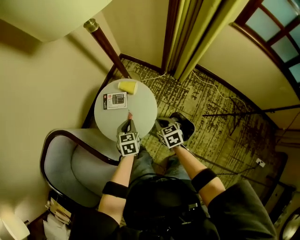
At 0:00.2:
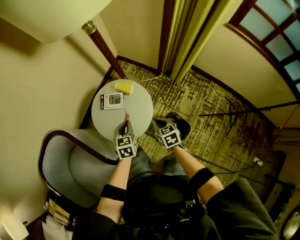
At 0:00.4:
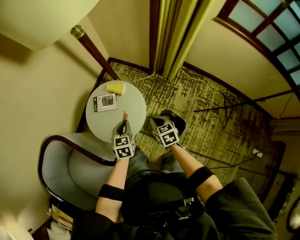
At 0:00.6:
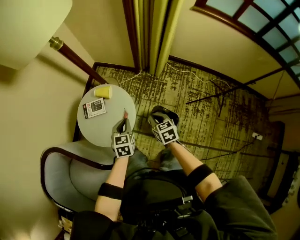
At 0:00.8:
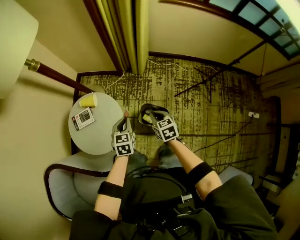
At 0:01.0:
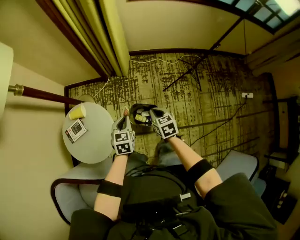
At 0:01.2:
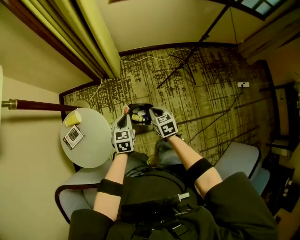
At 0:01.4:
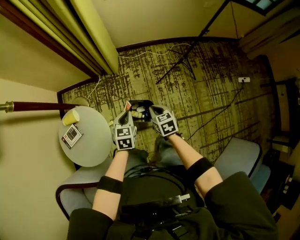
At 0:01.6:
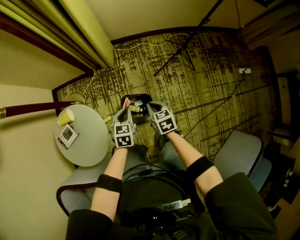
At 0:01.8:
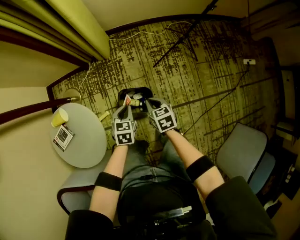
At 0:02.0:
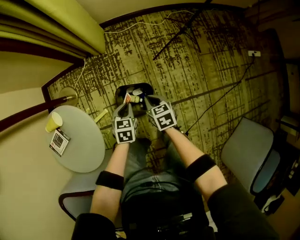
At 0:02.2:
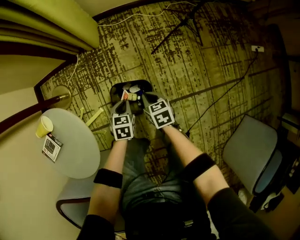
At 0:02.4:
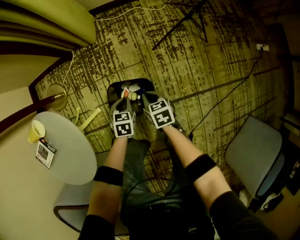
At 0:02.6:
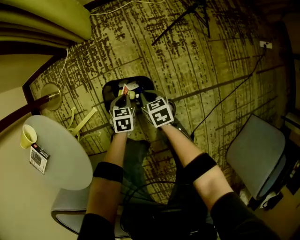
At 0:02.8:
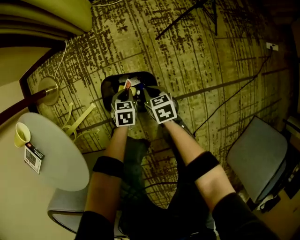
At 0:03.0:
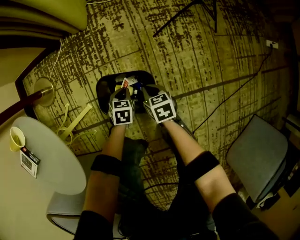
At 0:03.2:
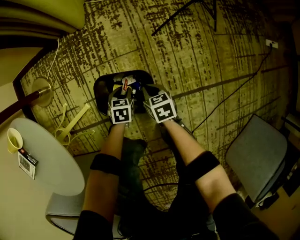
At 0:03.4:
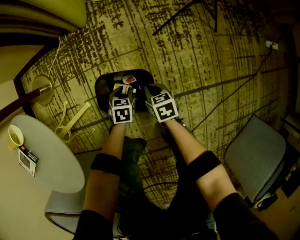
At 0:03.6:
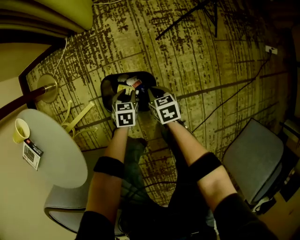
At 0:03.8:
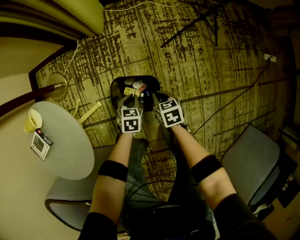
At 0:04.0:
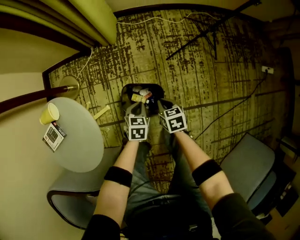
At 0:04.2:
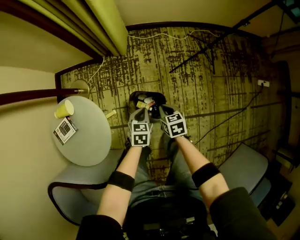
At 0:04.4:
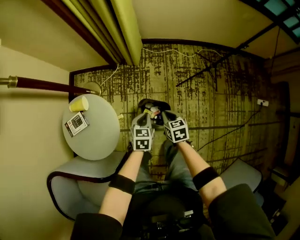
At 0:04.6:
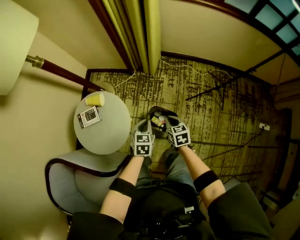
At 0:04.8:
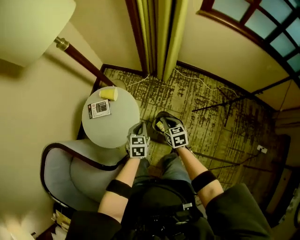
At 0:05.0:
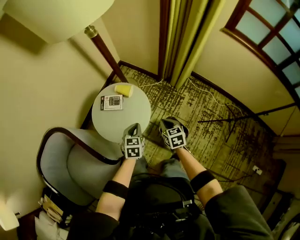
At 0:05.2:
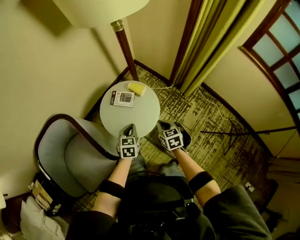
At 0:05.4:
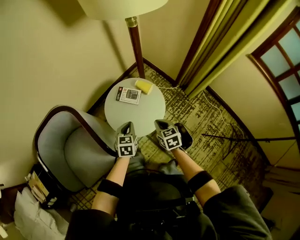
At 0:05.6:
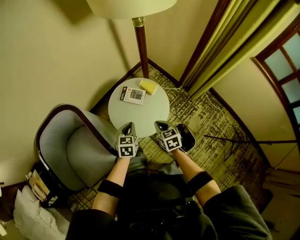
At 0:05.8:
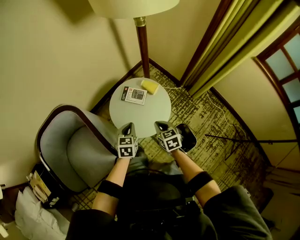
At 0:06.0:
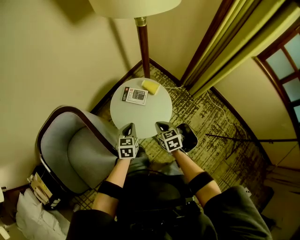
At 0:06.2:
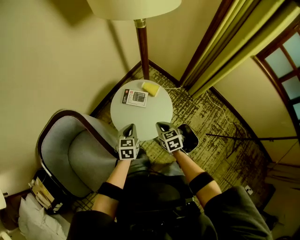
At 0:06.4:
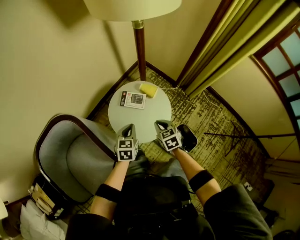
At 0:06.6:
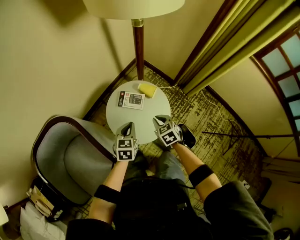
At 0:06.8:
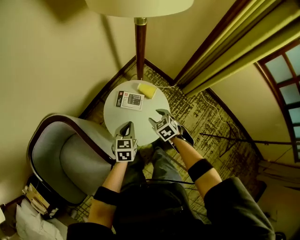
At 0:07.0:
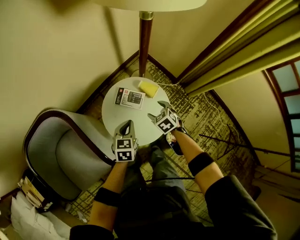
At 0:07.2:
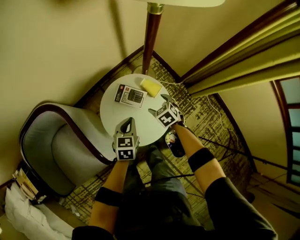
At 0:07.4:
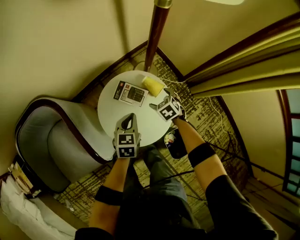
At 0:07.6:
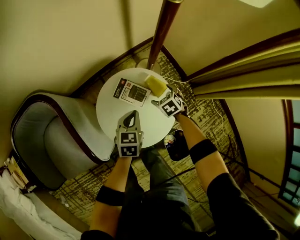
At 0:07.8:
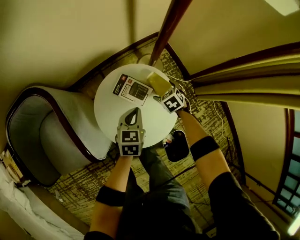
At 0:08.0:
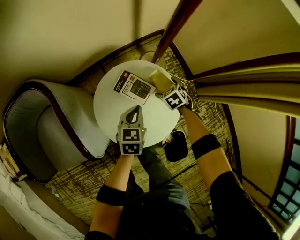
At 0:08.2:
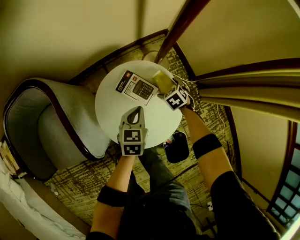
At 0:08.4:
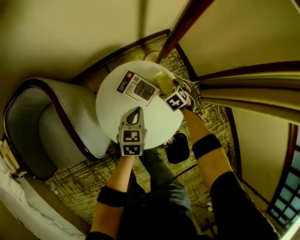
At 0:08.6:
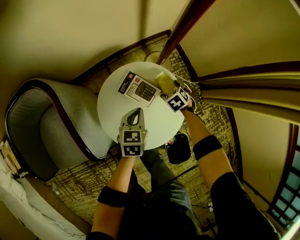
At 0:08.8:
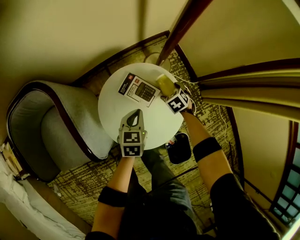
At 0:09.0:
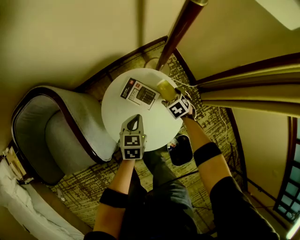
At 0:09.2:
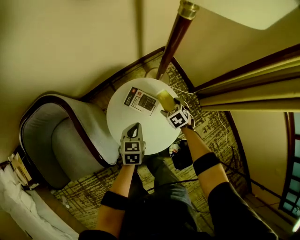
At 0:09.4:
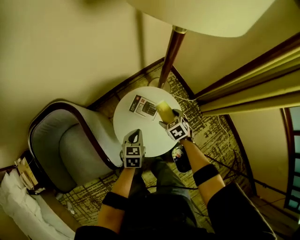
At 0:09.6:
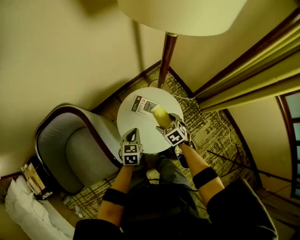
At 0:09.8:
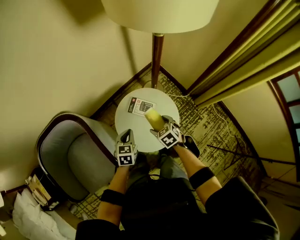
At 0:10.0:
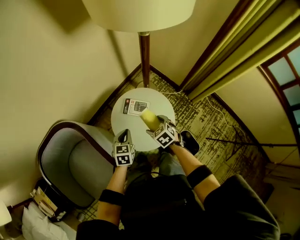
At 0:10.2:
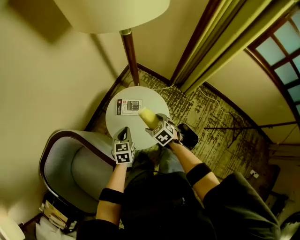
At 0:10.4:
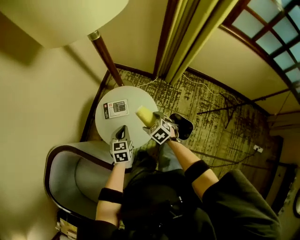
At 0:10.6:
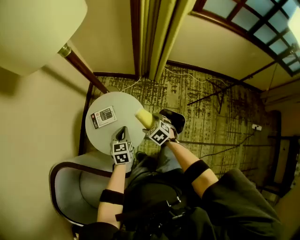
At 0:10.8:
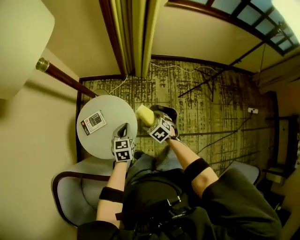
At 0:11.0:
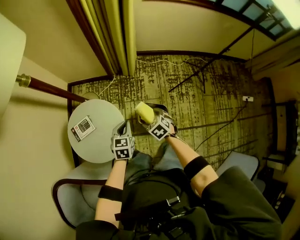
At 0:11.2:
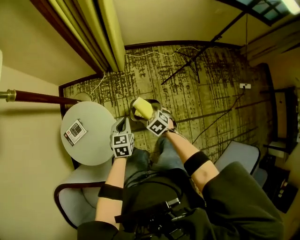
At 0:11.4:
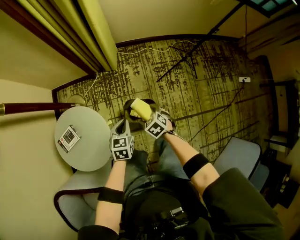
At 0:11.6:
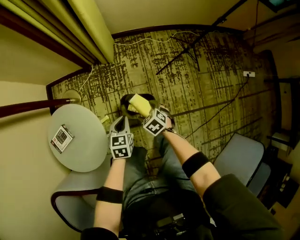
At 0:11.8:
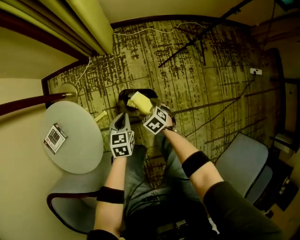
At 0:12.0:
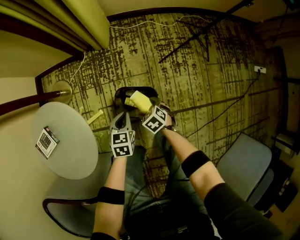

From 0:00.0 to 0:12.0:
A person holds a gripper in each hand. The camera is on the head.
From 0:00.0 to 0:01.6: The left gripper moves about 35 cm, and swivels about 50 degrees. Meanwhile the right gripper ends up about 35 cm from where it was, and changes its angle by some 40 degrees.
From 0:01.6 to 0:03.0: Both grippers travel together downward, roughly 50 cm.
From 0:03.0 to 0:04.4: Both grippers travel together upward, roughly 40 cm. The left gripper opens, then closes again.
From 0:04.4 to 0:06.0: The right gripper moves about 40 cm, and changes its angle by some 50 degrees. The left gripper changes place by roughly 50 cm, and changes its angle by about 50 degrees.
From 0:06.0 to 0:07.6: The right gripper travels forward and downward by some 35 cm, turns by about 40 degrees, and opens up, while the left gripper is displaced forward and downward by about 20 cm.
From 0:09.0 to 0:10.4: The right gripper travels upward and backward by approximately 30 cm, and turns by approximately 30 degrees. Meanwhile the left gripper travels upward and backward by roughly 15 cm, and rotates some 30 degrees.
From 0:10.4 to 0:12.0: The right gripper shifts by some 50 cm, and turns by approximately 30 degrees, while the left gripper shifts by some 50 cm, and swivels approximately 30 degrees.

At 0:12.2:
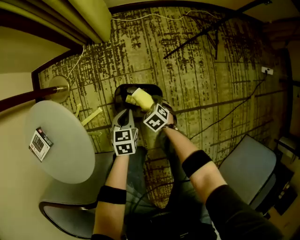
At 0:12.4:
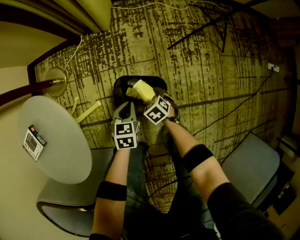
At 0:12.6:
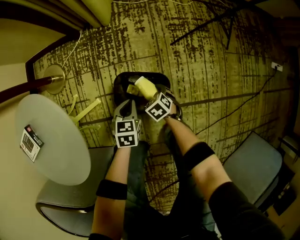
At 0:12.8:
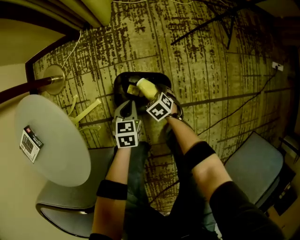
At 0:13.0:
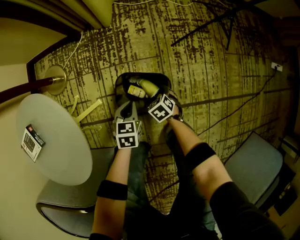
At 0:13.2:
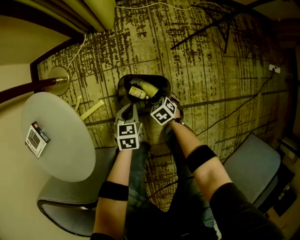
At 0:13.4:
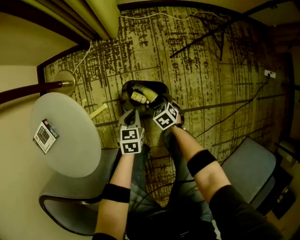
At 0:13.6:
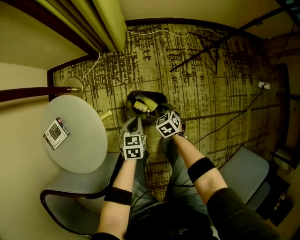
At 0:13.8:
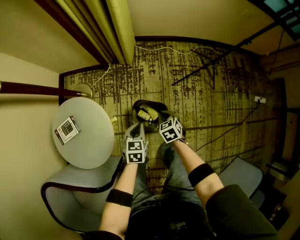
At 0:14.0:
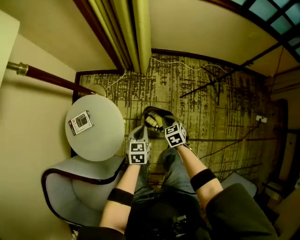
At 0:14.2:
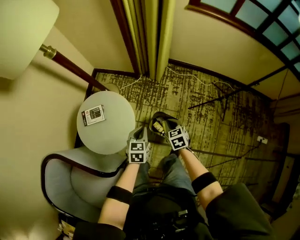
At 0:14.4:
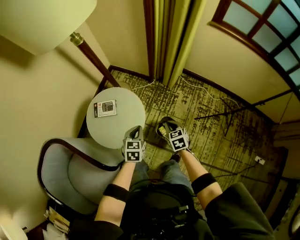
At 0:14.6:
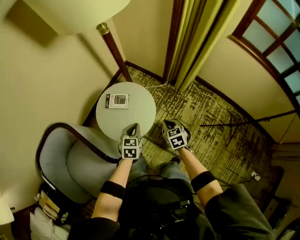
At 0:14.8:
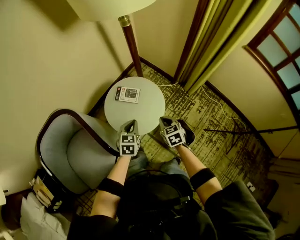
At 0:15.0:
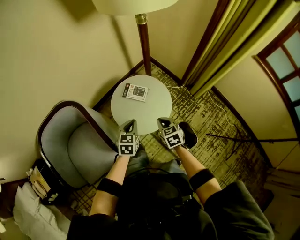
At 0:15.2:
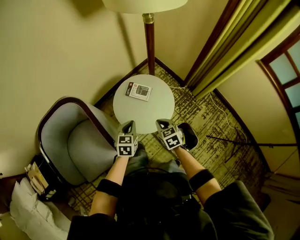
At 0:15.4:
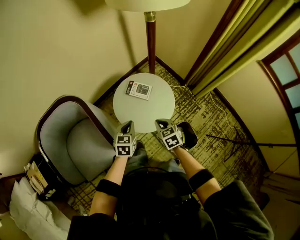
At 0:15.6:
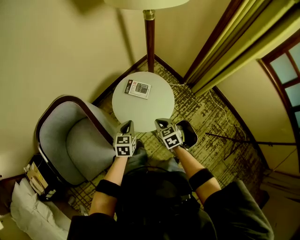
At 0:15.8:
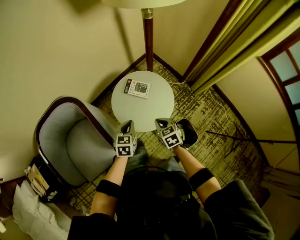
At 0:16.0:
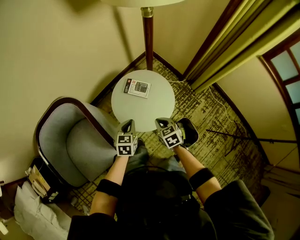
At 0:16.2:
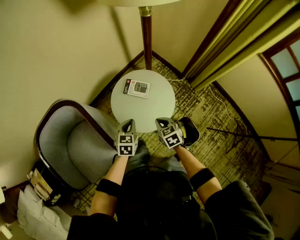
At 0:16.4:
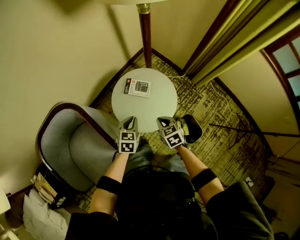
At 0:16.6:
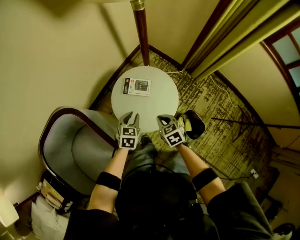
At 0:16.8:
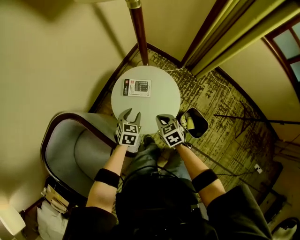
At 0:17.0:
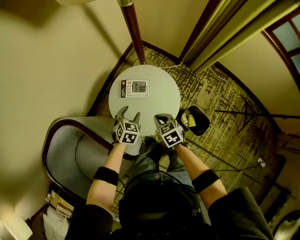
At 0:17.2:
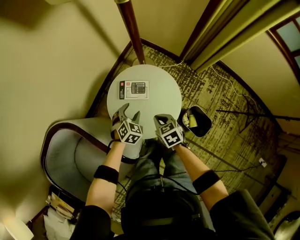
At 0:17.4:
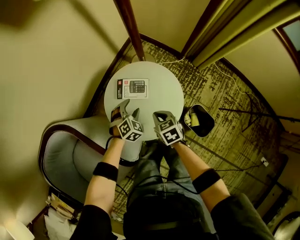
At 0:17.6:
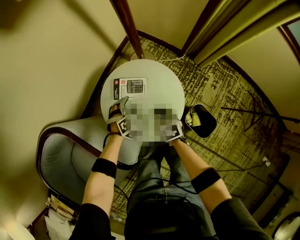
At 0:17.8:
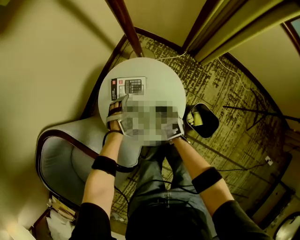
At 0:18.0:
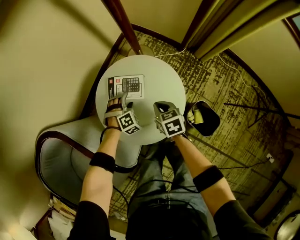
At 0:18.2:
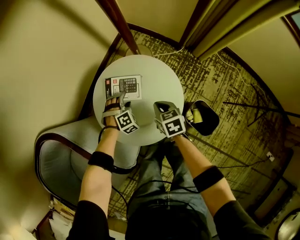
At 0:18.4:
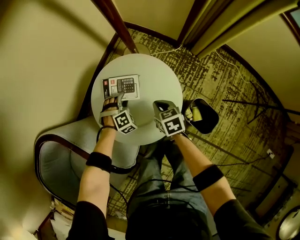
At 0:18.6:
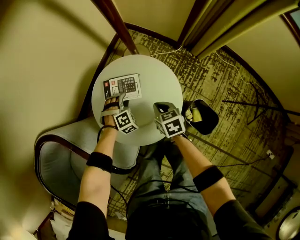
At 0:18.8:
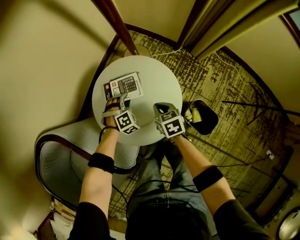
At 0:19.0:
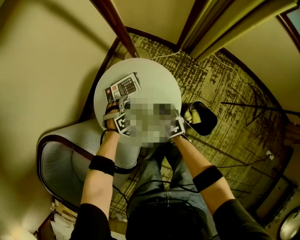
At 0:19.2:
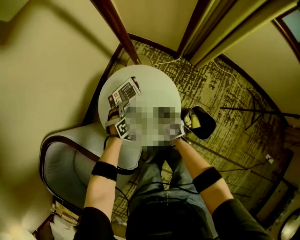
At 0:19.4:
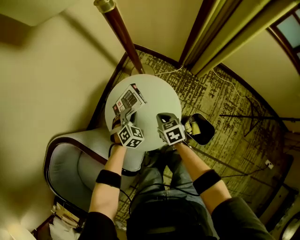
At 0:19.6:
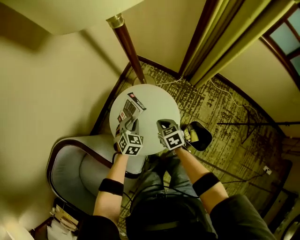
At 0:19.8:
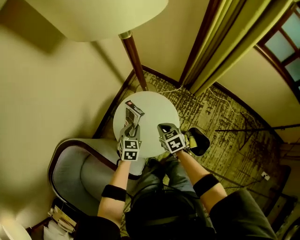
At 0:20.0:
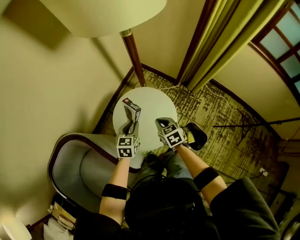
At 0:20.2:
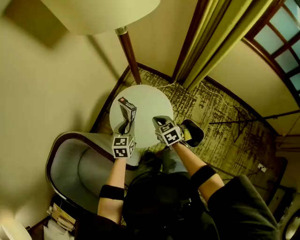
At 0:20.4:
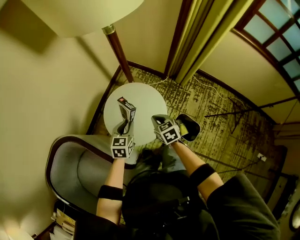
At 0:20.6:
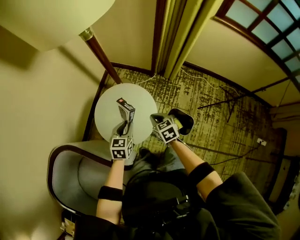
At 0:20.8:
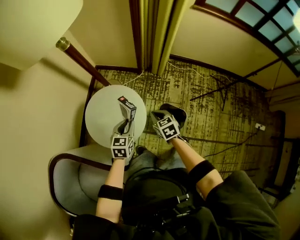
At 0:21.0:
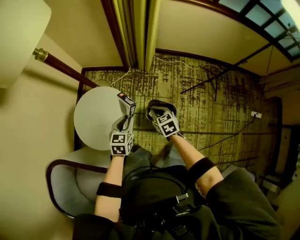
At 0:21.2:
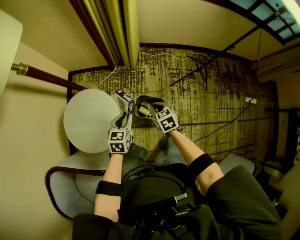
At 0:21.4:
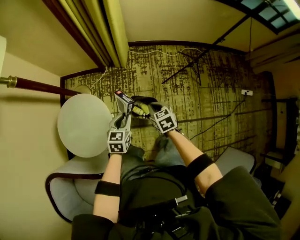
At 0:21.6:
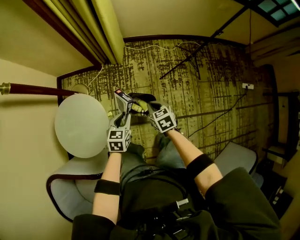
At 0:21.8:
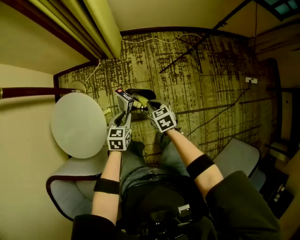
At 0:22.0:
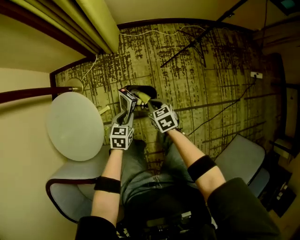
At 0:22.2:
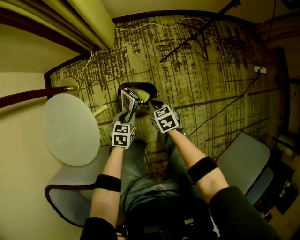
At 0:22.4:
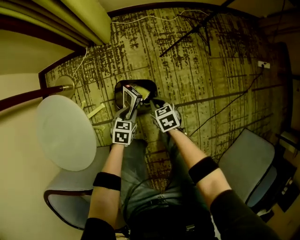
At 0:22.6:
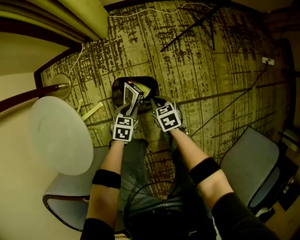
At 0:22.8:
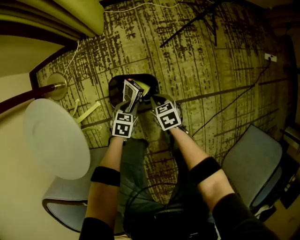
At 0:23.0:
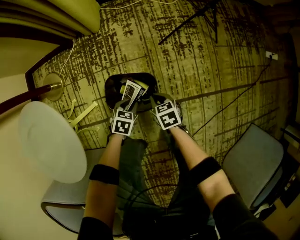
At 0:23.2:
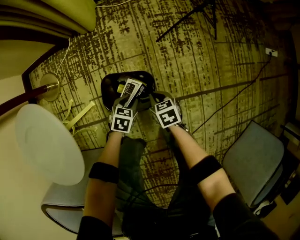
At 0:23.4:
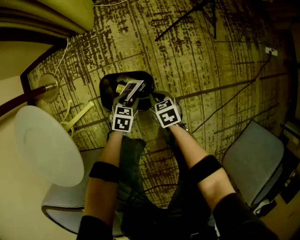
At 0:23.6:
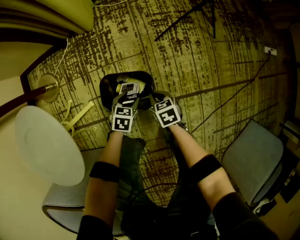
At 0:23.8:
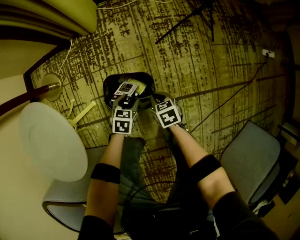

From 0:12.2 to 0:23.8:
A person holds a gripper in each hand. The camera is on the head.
From 0:12.2 to 0:13.6: Both grippers move upward, some 10 cm. The right gripper closes up.
From 0:13.6 to 0:15.0: The right gripper moves approximately 50 cm, and swivels about 50 degrees. The left gripper moves about 50 cm, and rotates some 50 degrees.
From 0:15.0 to 0:16.6: The left gripper moves forward and downward, roughly 10 cm. Meanwhile the right gripper moves to the left, about 5 cm.
From 0:16.6 to 0:18.0: Both grippers travel together downward and forward, about 25 cm. The left gripper rolls clockwise, seen from behind, by some 70 degrees, and opens.
From 0:18.0 to 0:19.4: The left gripper travels upward by roughly 15 cm, rotates approximately 30 degrees, and closes its fingers; the right gripper is displaced upward by about 10 cm.
From 0:19.4 to 0:21.0: The right gripper shifts by roughly 30 cm, and turns by about 20 degrees; the left gripper shifts by approximately 30 cm, and swivels roughly 40 degrees.
From 0:21.0 to 0:22.4: Both grippers travel together downward and to the right, some 40 cm. The right gripper swivels some 20 degrees. Meanwhile the left gripper swivels about 30 degrees.
From 0:22.4 to 0:23.8: Both grippers travel together downward, about 10 cm. The left gripper opens up.
